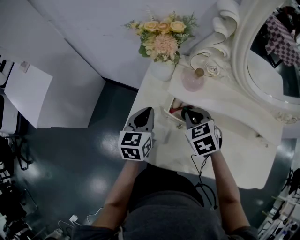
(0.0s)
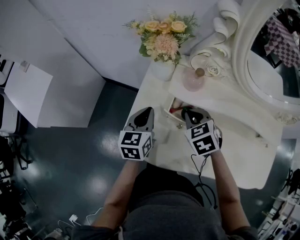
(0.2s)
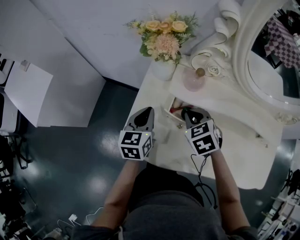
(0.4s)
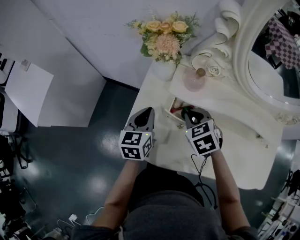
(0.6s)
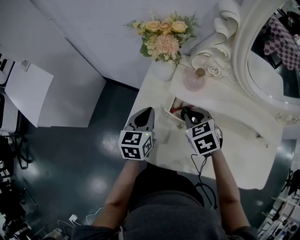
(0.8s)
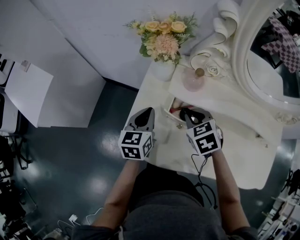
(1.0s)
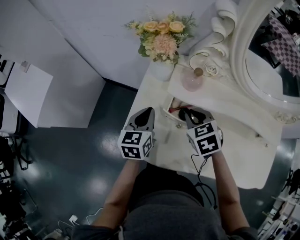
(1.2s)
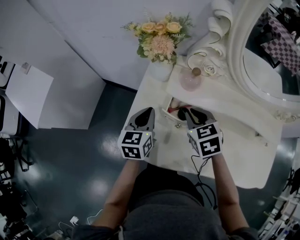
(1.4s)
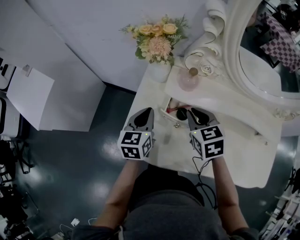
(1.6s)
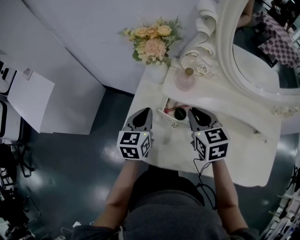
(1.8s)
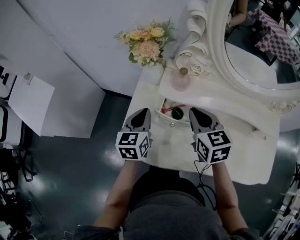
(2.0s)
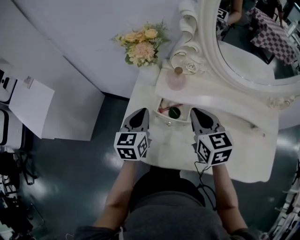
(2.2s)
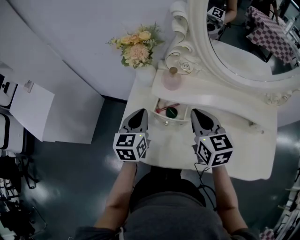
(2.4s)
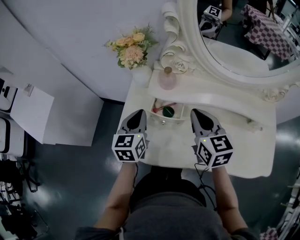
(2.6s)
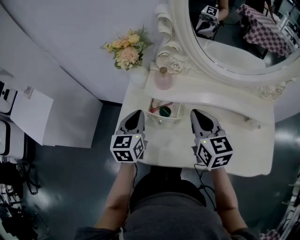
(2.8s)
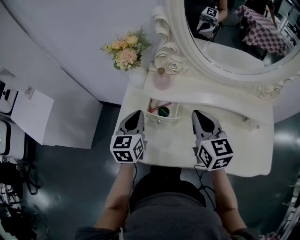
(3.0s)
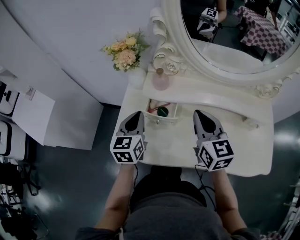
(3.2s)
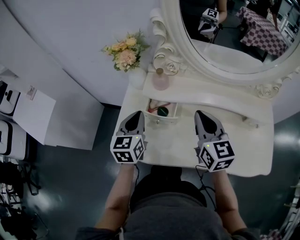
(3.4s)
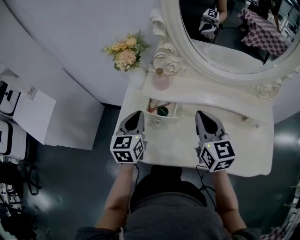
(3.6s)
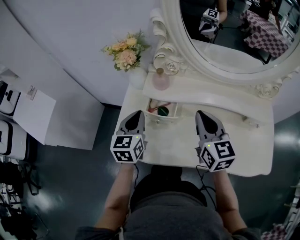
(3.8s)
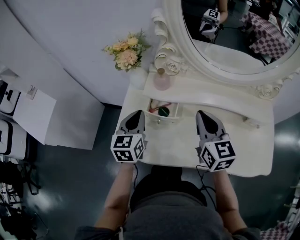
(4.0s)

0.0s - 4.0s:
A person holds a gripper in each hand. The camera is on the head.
0.0s - 1.4s: The grippers stay close to where they were, moving slightly.
1.4s - 2.6s: The right gripper travels upward and to the right by approximately 10 cm, and rotates approximately 30 degrees, while the left gripper shifts some 5 cm upward.
2.6s - 4.0s: The right gripper shifts by some 5 cm.

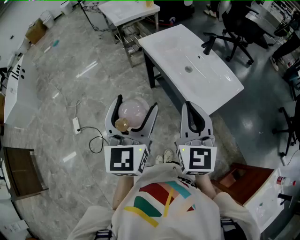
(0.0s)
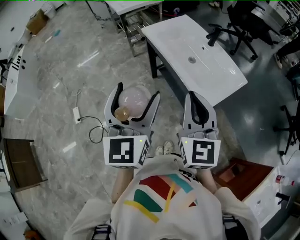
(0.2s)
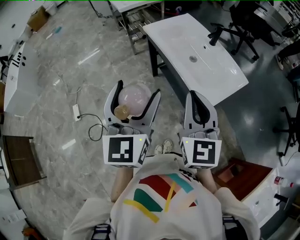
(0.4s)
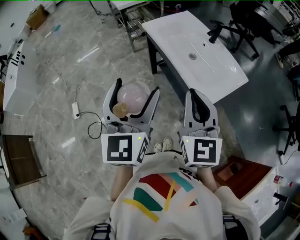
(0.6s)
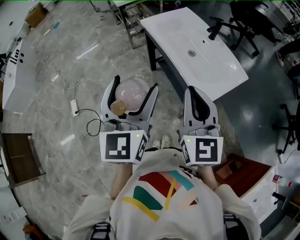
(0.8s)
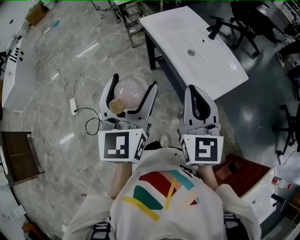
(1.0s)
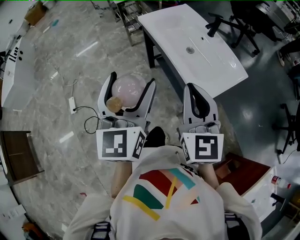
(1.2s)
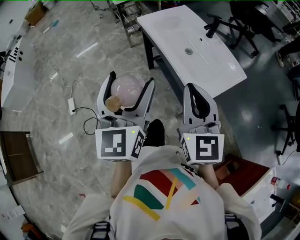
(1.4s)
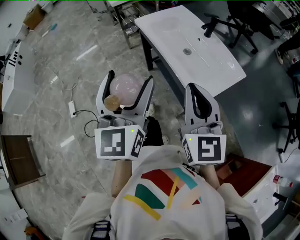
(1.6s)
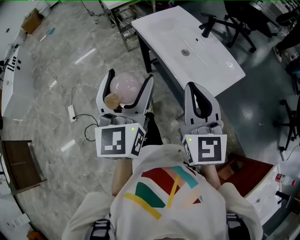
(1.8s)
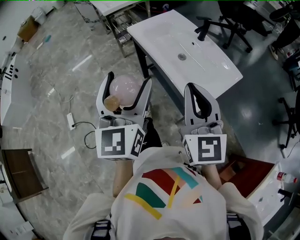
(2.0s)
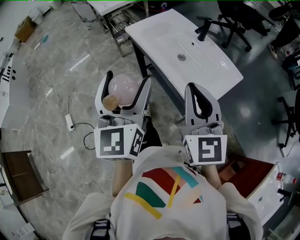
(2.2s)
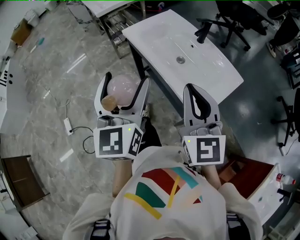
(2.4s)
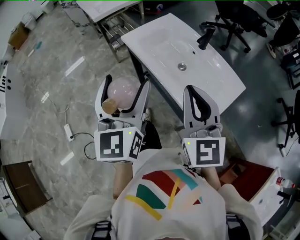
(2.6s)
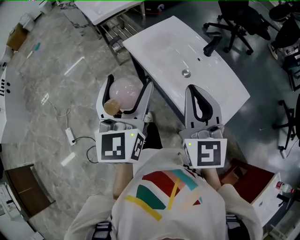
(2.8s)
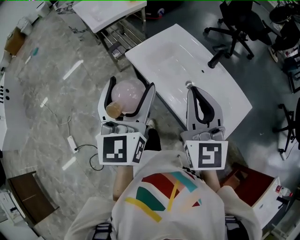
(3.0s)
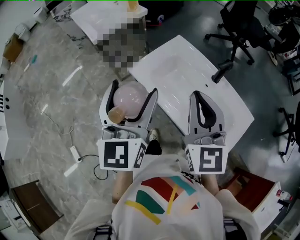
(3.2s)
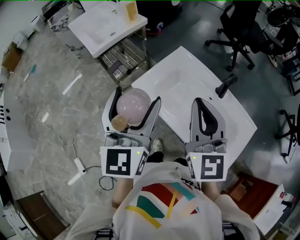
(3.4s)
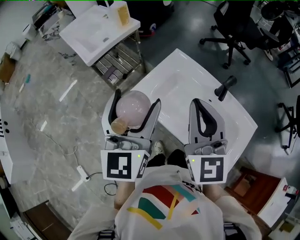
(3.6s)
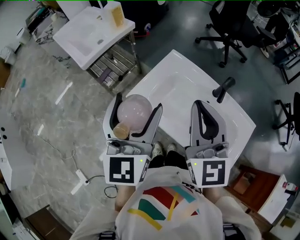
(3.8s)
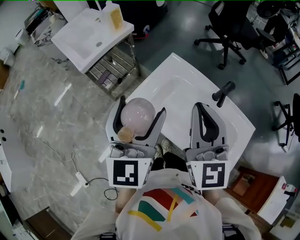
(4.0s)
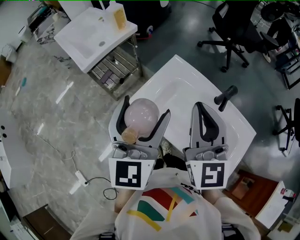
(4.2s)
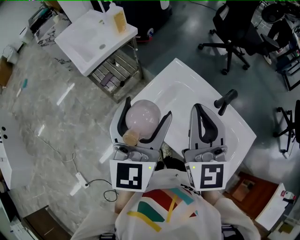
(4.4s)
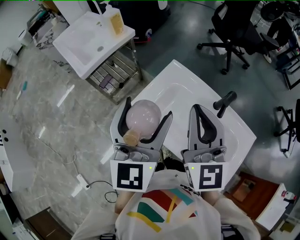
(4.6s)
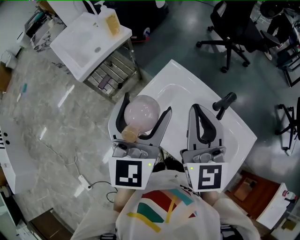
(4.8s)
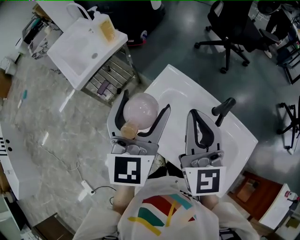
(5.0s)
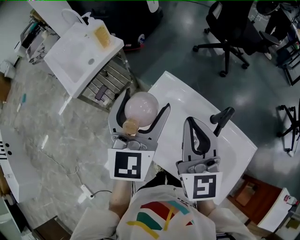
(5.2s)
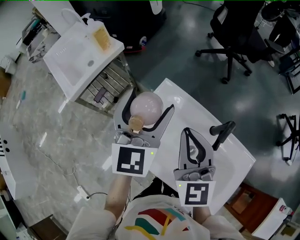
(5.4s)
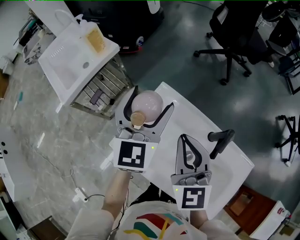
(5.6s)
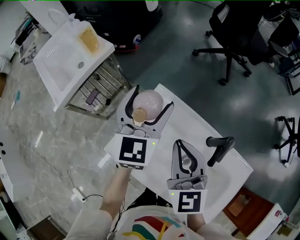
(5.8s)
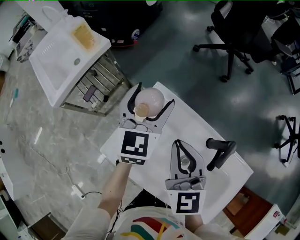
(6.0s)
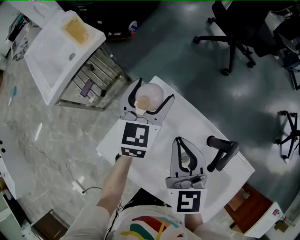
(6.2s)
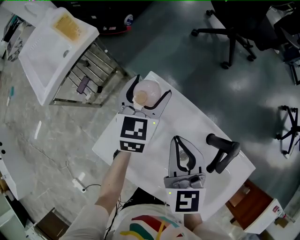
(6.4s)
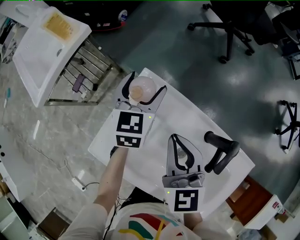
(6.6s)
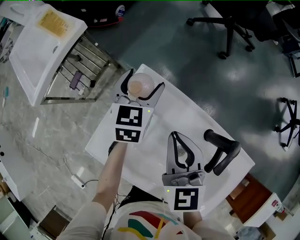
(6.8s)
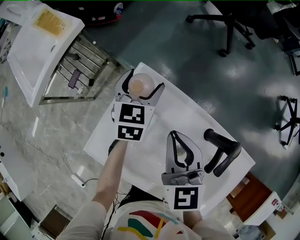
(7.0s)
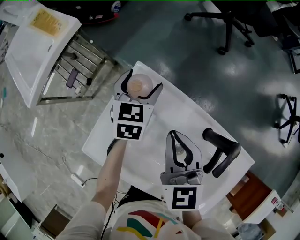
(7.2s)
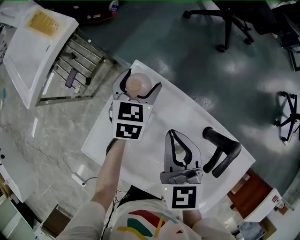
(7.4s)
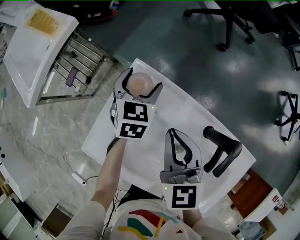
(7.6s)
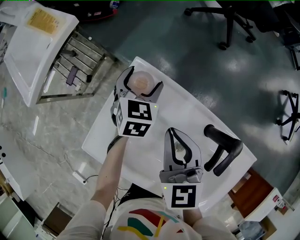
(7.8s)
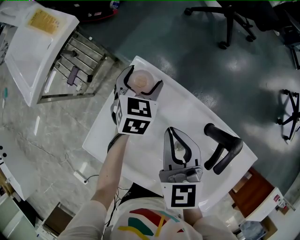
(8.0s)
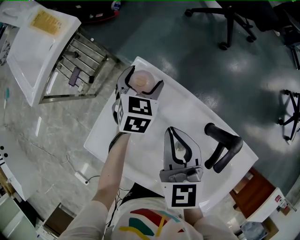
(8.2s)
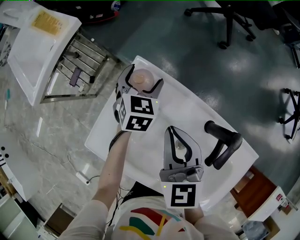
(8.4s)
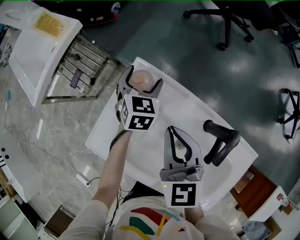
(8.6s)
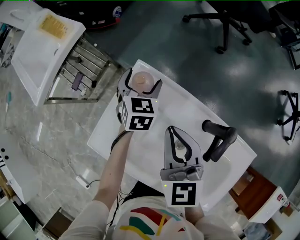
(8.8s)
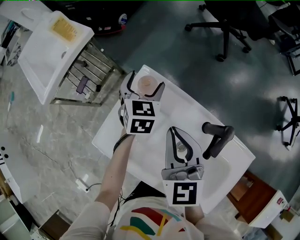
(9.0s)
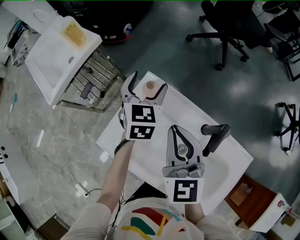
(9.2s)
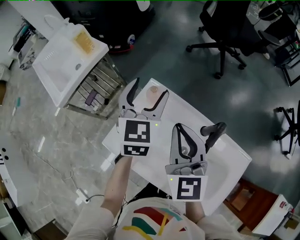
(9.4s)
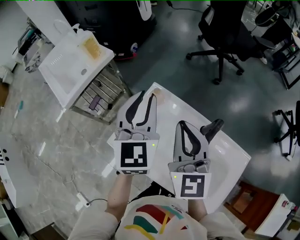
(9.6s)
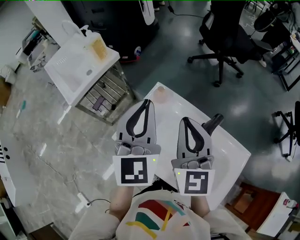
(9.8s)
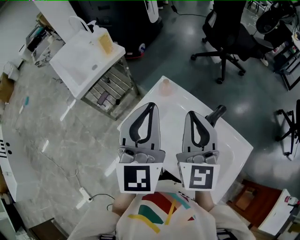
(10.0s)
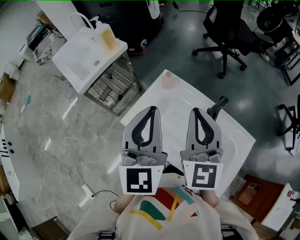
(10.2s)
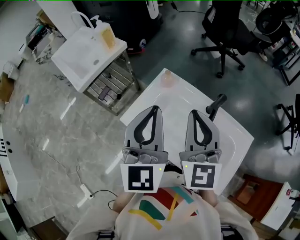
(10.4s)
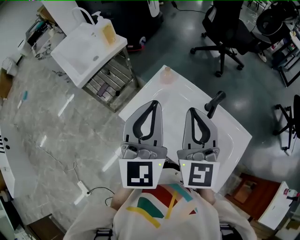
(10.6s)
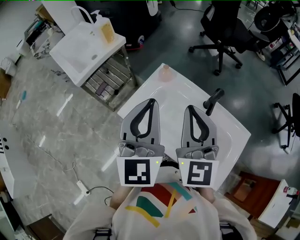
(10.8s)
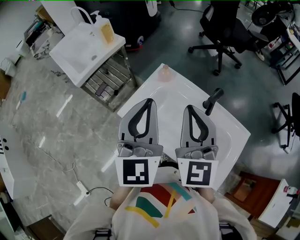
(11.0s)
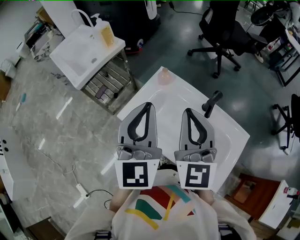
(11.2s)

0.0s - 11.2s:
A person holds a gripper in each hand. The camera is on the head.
0.0s - 1.6s: The grippers make only small movements.
1.6s - 3.2s: The two grippers go approximately 30 cm forward.
3.2s - 4.8s: The two grippers go roughly 15 cm forward.
4.8s - 6.4s: The left gripper travels forward and downward by approximately 35 cm, and swivels approximately 30 degrees, while the right gripper shifts about 20 cm downward and forward, and turns by approximately 20 degrees.
6.4s - 8.0s: The left gripper moves downward, roughly 10 cm.
8.0s - 9.6s: The left gripper goes about 30 cm upward and backward, tips its fingers upward by some 30 degrees, and closes. The right gripper goes approximately 15 cm upward, and turns by approximately 20 degrees.
9.6s - 11.2s: The left gripper moves backward, about 20 cm. Meanwhile the right gripper goes about 15 cm backward and upward.

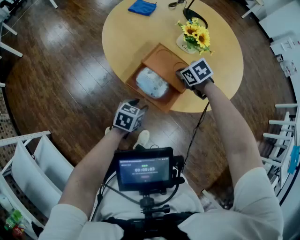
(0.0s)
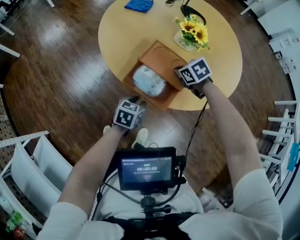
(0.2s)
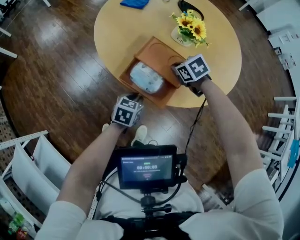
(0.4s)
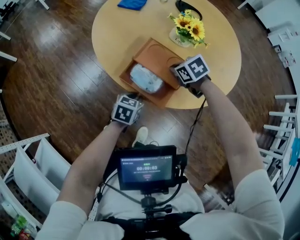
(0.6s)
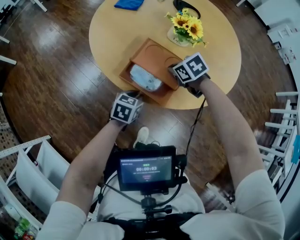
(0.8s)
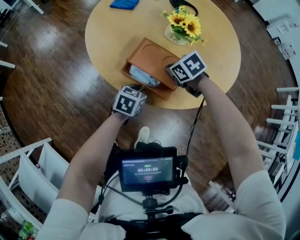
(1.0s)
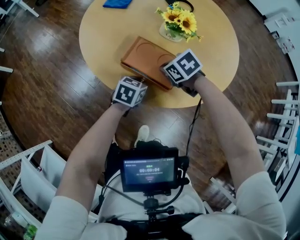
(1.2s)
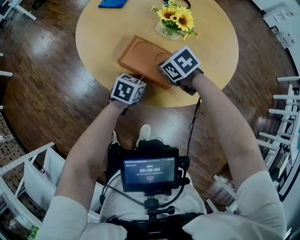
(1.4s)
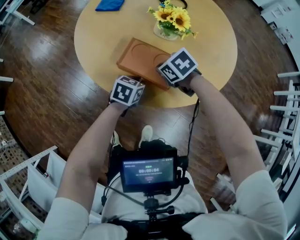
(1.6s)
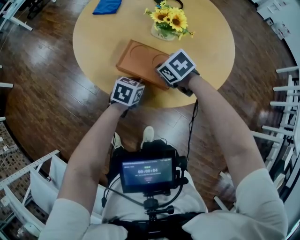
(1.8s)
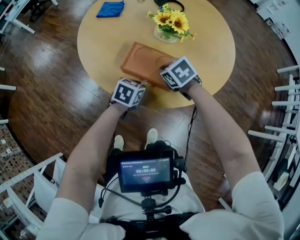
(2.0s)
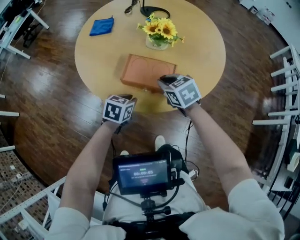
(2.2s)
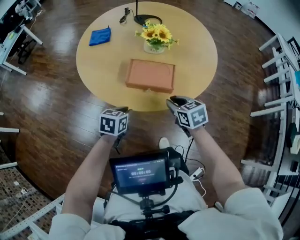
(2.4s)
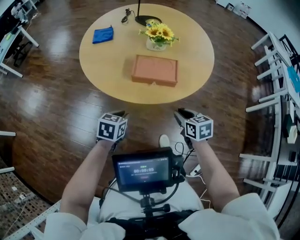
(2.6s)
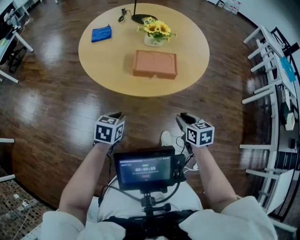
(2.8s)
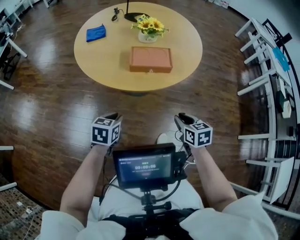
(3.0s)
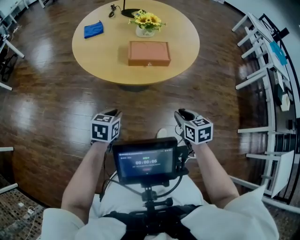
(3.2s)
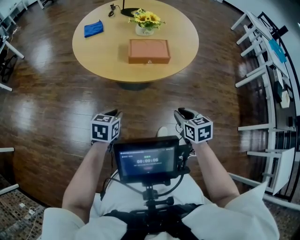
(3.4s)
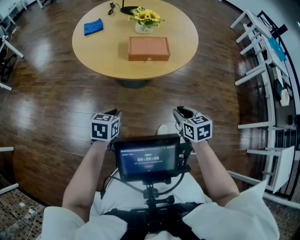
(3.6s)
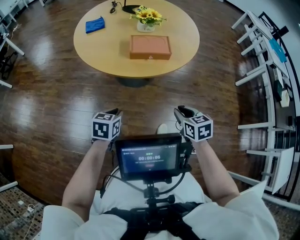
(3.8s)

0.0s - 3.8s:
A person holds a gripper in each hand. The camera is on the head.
0.0s - 1.2s: The left gripper is displaced forward and to the right by approximately 15 cm, and closes up.
1.2s - 2.6s: The left gripper shifts by roughly 20 cm. The right gripper shifts by roughly 20 cm, swivels about 60 degrees, and opens its fingers.
2.6s - 3.8s: Both grippers travel together backward, about 15 cm.

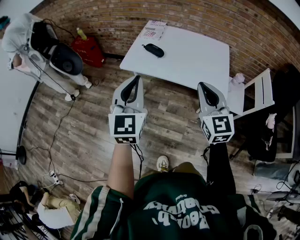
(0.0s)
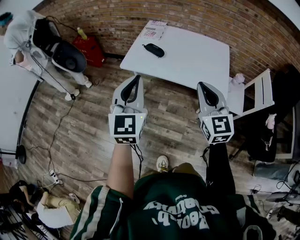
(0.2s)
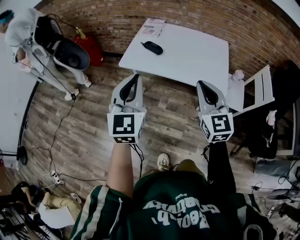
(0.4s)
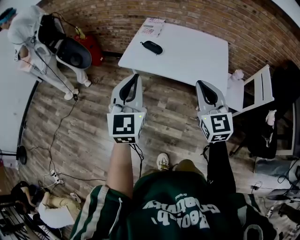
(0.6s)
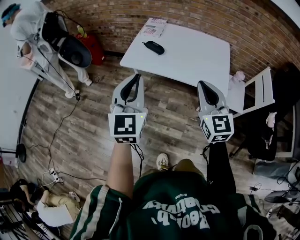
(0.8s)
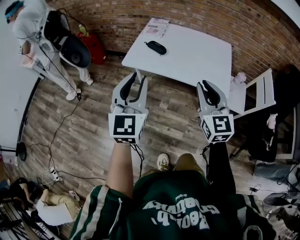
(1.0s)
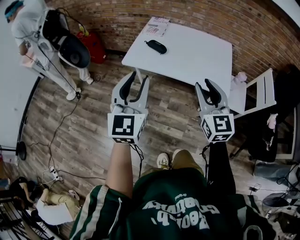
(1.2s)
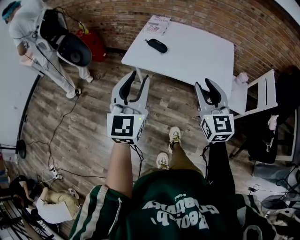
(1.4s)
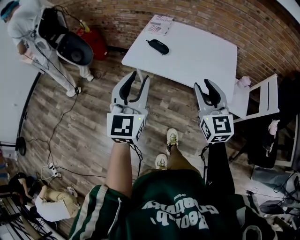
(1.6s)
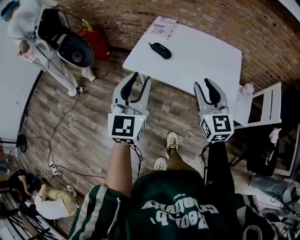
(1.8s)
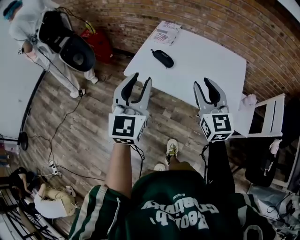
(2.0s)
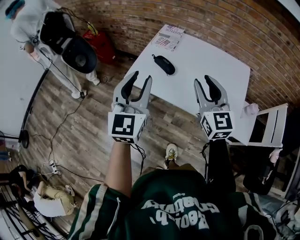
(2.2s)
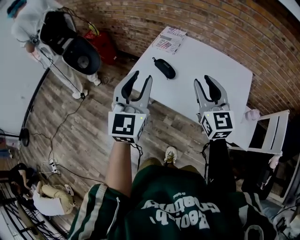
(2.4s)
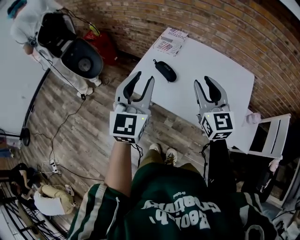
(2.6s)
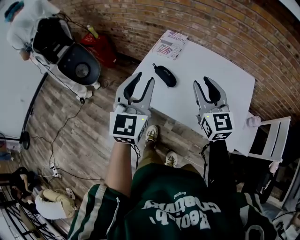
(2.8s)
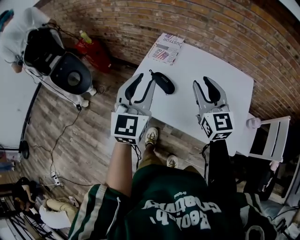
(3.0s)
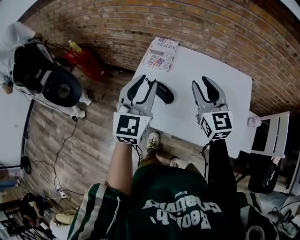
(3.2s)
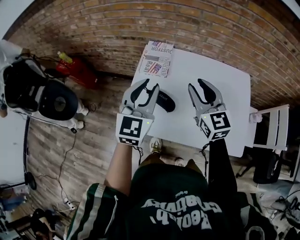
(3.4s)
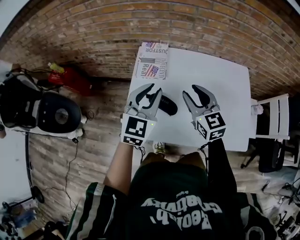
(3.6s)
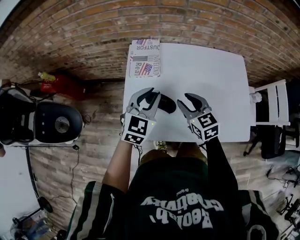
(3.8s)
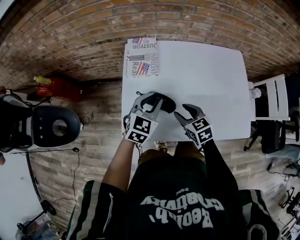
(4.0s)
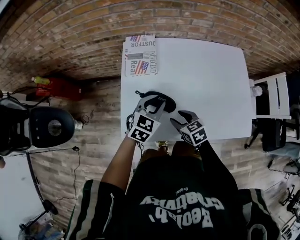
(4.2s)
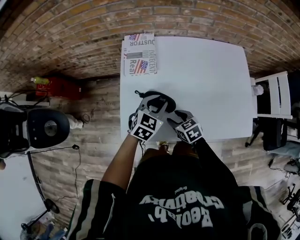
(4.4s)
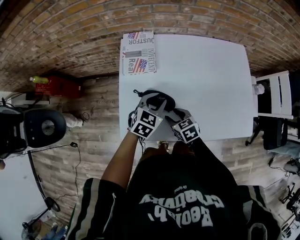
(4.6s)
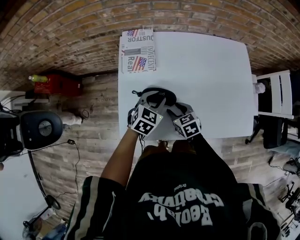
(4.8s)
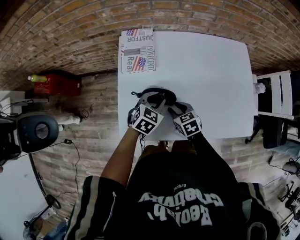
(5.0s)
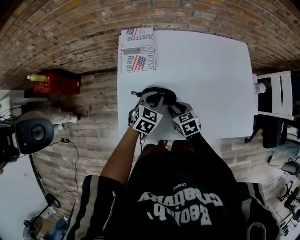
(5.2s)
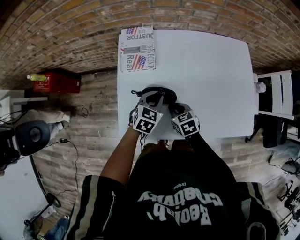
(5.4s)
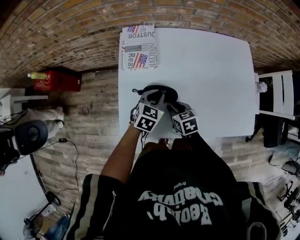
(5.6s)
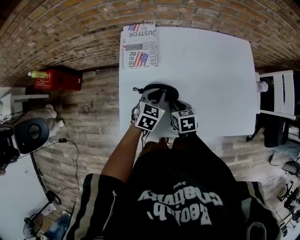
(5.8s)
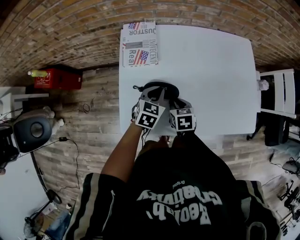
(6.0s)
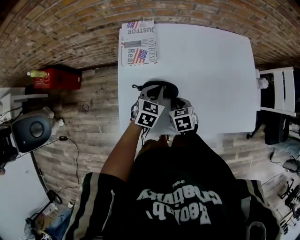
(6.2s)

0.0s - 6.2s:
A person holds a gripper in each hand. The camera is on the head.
0.0s - 1.6s: The right gripper changes place by some 5 cm, and opens its fingers. The left gripper opens its fingers.
1.6s - 3.2s: Both grippers move forward, about 35 cm.
3.2s - 4.6s: The two grippers go some 30 cm downward. The left gripper angles its fingers downward, by about 30 degrees; the right gripper points its fingers roughly 40 degrees further downward.
4.6s - 6.2s: The left gripper closes its fingers. The right gripper closes its fingers.
